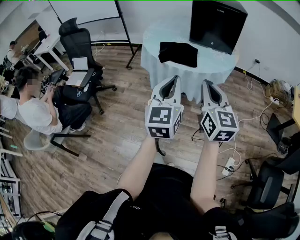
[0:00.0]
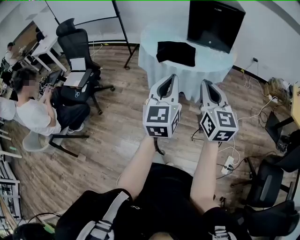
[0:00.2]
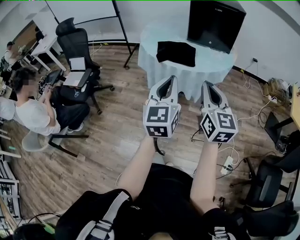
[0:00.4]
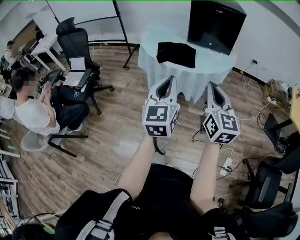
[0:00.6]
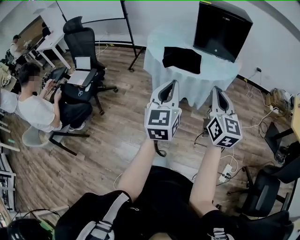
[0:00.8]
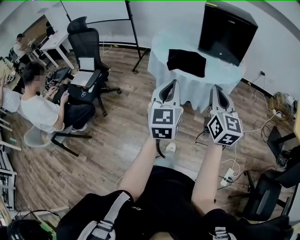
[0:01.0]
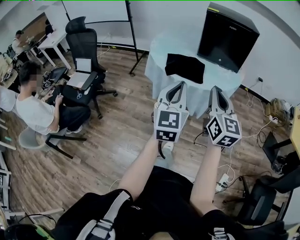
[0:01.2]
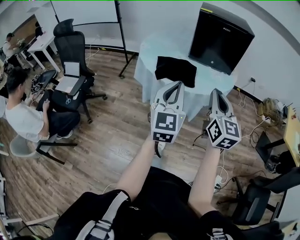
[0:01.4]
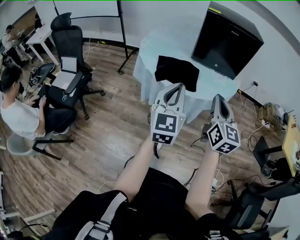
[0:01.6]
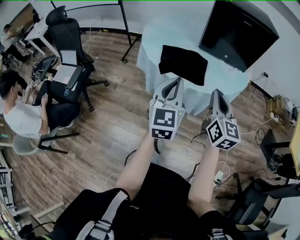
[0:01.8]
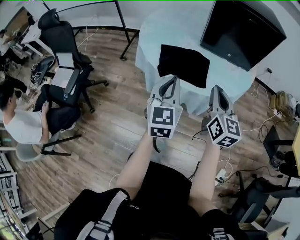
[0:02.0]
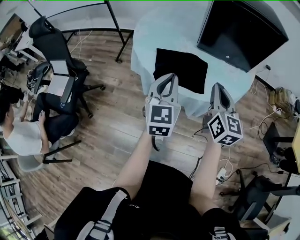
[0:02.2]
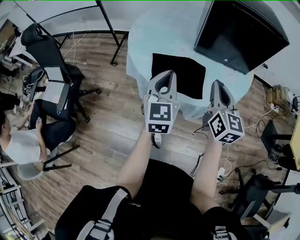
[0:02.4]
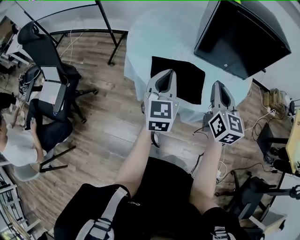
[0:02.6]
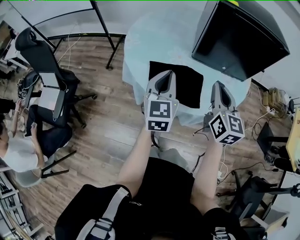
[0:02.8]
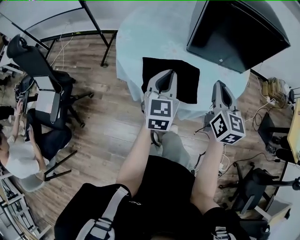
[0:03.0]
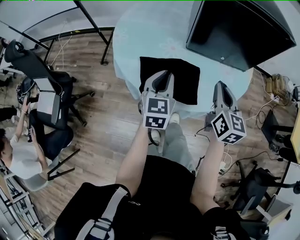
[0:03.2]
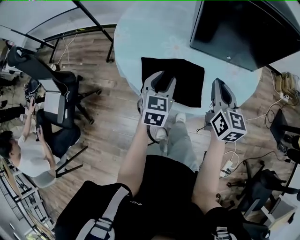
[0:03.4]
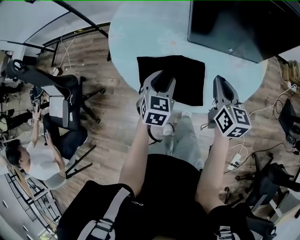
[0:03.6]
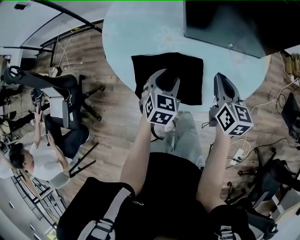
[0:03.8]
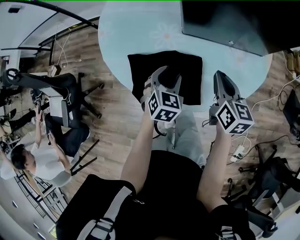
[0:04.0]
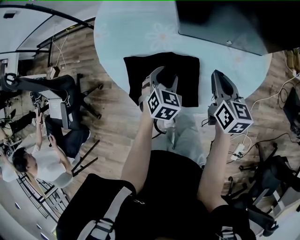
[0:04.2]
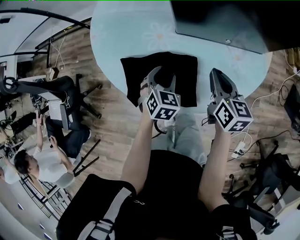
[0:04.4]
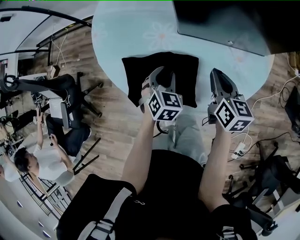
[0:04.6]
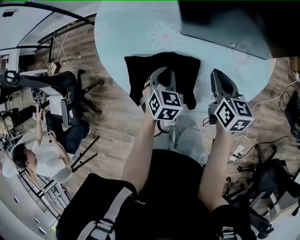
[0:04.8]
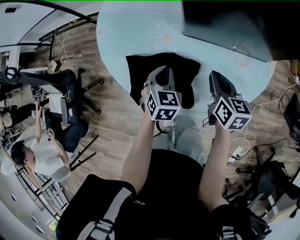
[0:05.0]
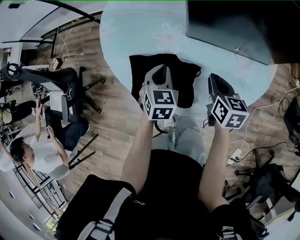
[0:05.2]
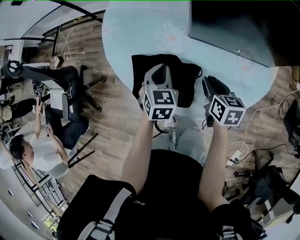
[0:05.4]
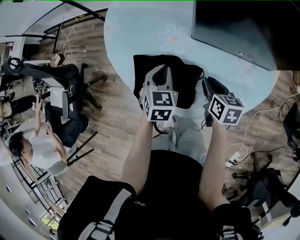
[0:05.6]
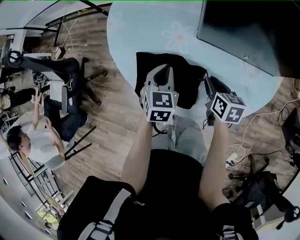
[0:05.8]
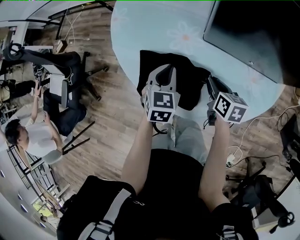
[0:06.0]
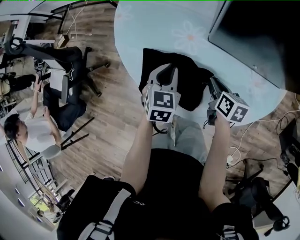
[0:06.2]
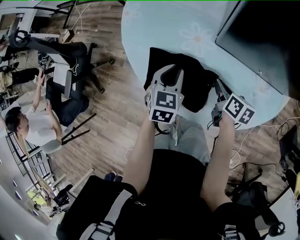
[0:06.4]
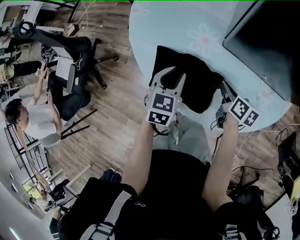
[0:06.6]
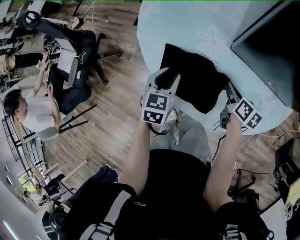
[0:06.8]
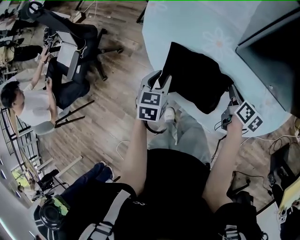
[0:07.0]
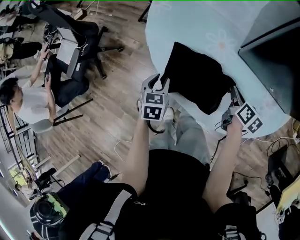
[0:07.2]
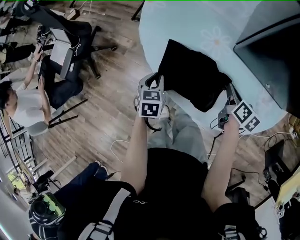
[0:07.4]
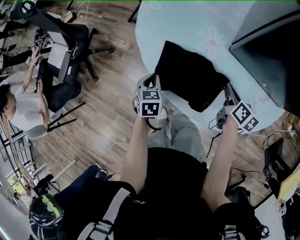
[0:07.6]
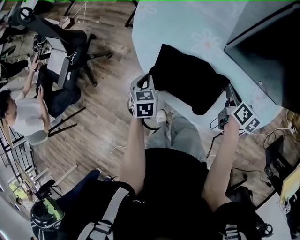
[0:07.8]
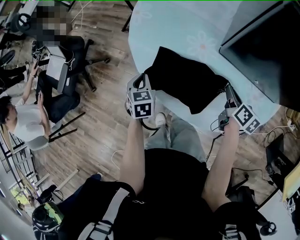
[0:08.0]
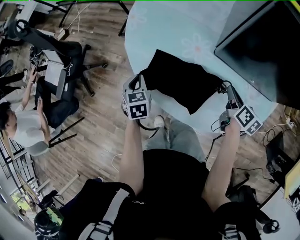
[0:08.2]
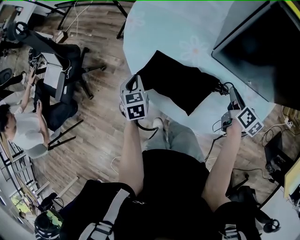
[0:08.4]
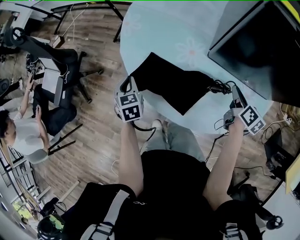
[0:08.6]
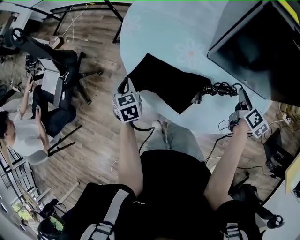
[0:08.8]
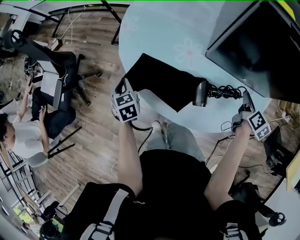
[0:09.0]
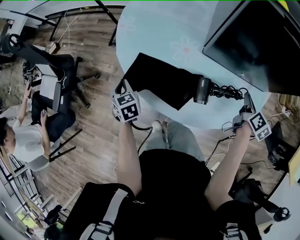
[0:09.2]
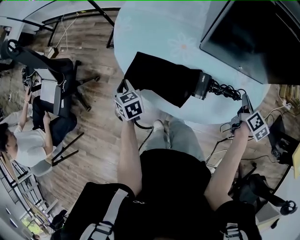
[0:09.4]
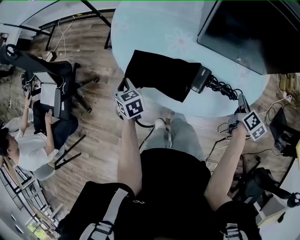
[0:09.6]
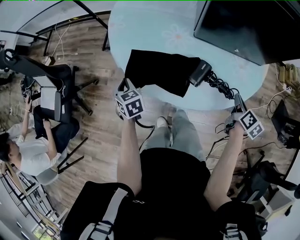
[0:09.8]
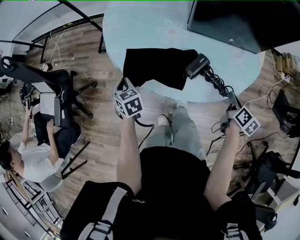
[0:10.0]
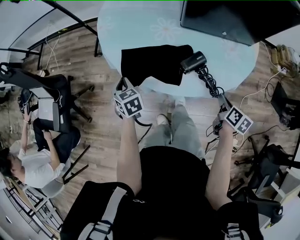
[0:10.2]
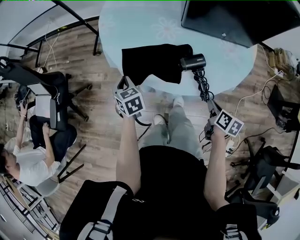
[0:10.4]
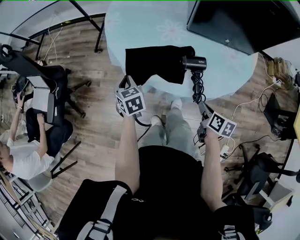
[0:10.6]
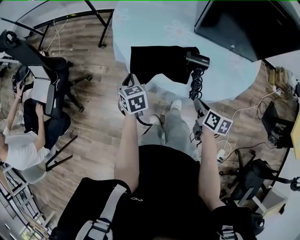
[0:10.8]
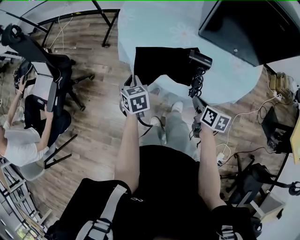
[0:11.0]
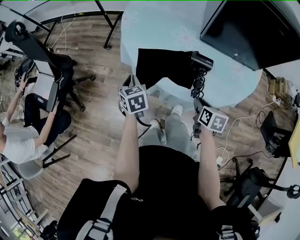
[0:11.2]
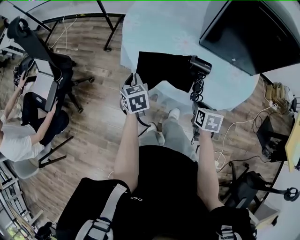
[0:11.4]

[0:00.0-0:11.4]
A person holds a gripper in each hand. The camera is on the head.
0:00.0 to 0:01.4: Both grippers move forward, some 10 cm.
0:01.4 to 0:02.8: Both grippers move forward, approximately 30 cm.
0:02.8 to 0:04.2: The right gripper goes roughly 20 cm downward, forward and to the right, and turns by roughly 20 degrees. Meanwhile the left gripper shifts some 25 cm downward and to the right, points its fingers roughly 40 degrees further downward, and opens.
0:04.2 to 0:05.6: The left gripper changes place by roughly 5 cm, changes its angle by roughly 20 degrees, and closes its fingers. The right gripper shifts some 10 cm downward.
0:05.6 to 0:07.2: The left gripper shifts some 20 cm to the left and downward, rotates approximately 30 degrees, and opens up.
0:07.2 to 0:08.6: The right gripper moves to the right and upward, roughly 10 cm; the left gripper goes roughly 5 cm forward, and closes.
0:08.6 to 0:10.0: The right gripper goes some 20 cm backward.
0:10.0 to 0:11.4: The right gripper heads to the left, covering about 15 cm, and rotates roughly 40 degrees.

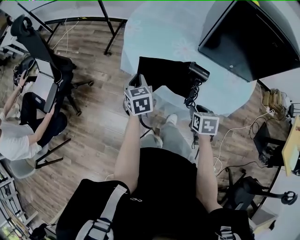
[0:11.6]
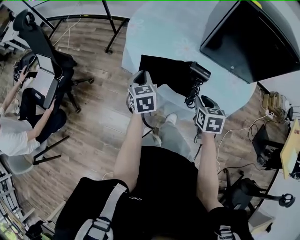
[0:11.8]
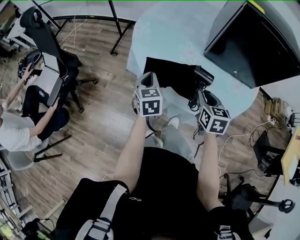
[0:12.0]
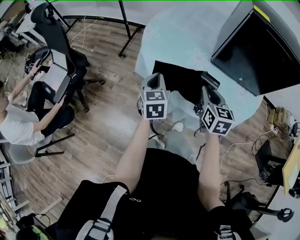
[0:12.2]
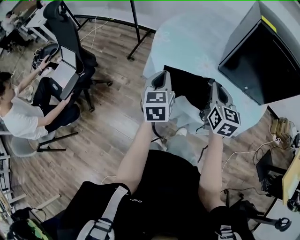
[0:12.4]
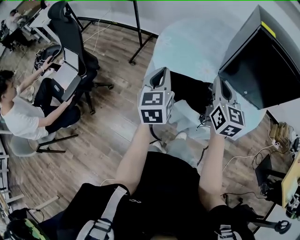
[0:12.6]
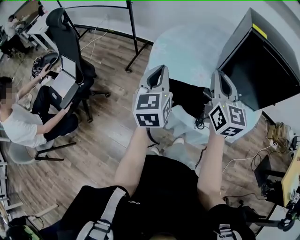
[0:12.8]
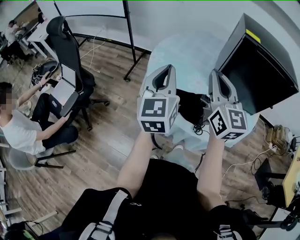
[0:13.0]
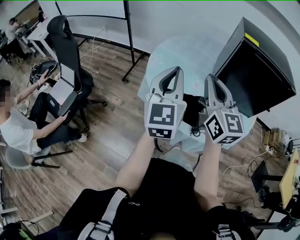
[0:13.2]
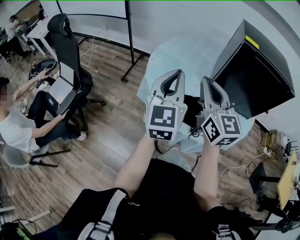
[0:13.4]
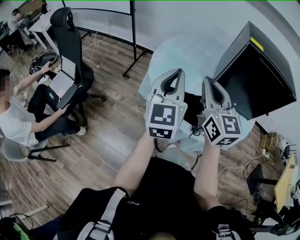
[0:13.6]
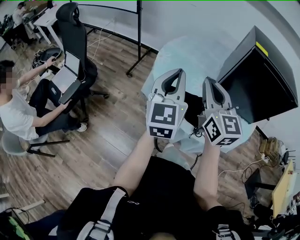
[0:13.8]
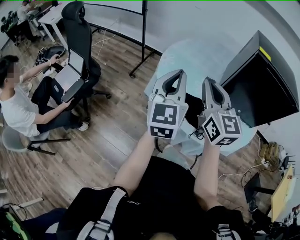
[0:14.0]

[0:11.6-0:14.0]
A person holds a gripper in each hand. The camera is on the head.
0:11.6 to 0:12.8: The right gripper goes roughly 35 cm upward and forward, tilts its fingers about 60 degrees upward, and closes up; the left gripper goes about 25 cm upward, and points its fingers about 30 degrees further upward.
0:12.8 to 0:14.0: The right gripper moves to the left, approximately 10 cm. The left gripper heads upward, covering roughly 5 cm.

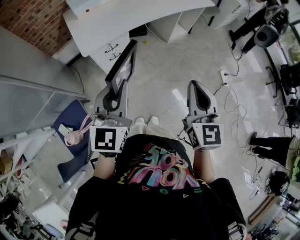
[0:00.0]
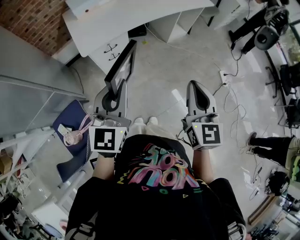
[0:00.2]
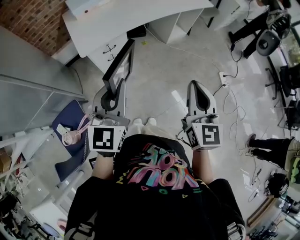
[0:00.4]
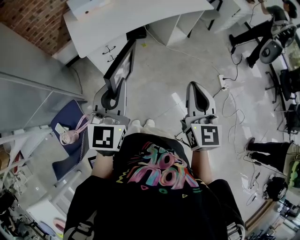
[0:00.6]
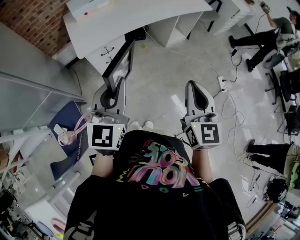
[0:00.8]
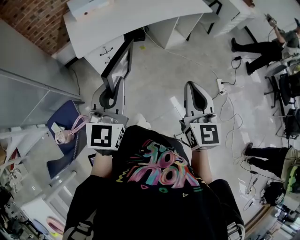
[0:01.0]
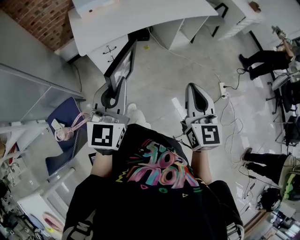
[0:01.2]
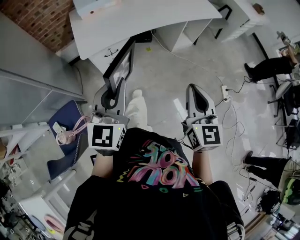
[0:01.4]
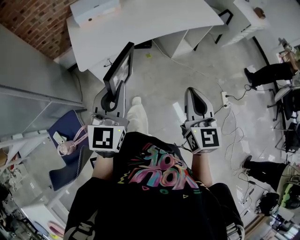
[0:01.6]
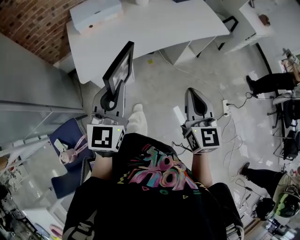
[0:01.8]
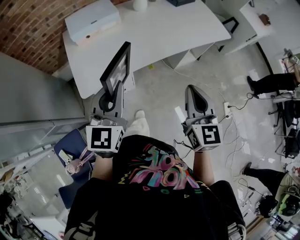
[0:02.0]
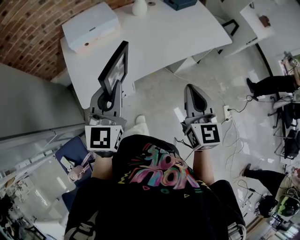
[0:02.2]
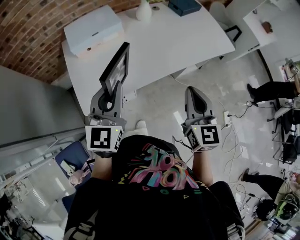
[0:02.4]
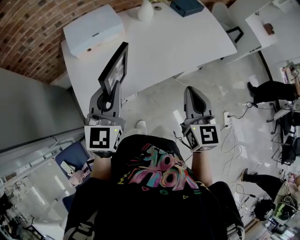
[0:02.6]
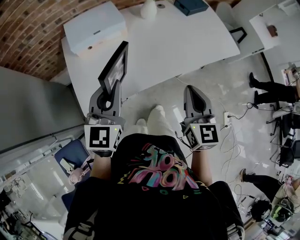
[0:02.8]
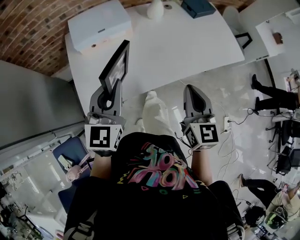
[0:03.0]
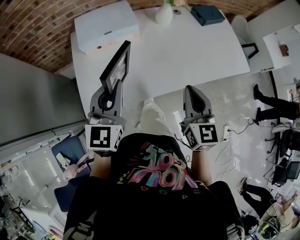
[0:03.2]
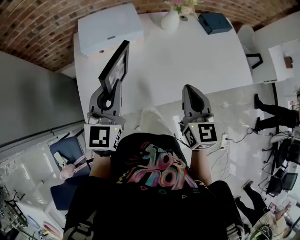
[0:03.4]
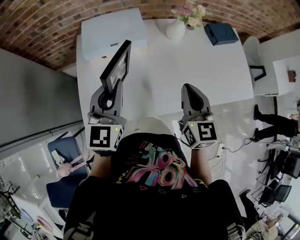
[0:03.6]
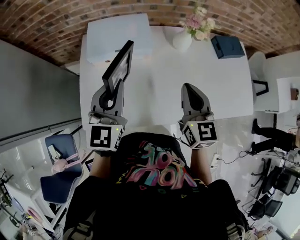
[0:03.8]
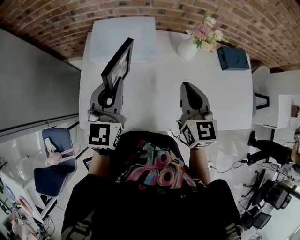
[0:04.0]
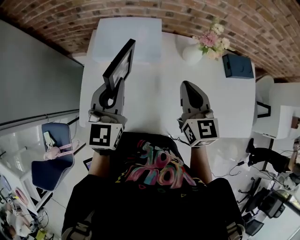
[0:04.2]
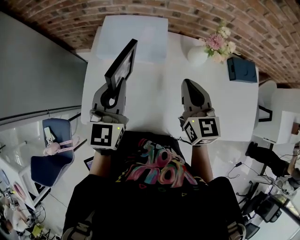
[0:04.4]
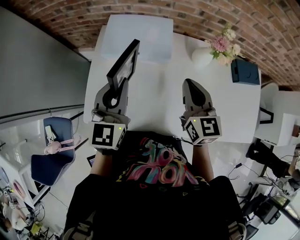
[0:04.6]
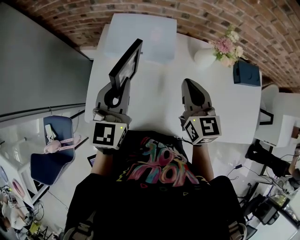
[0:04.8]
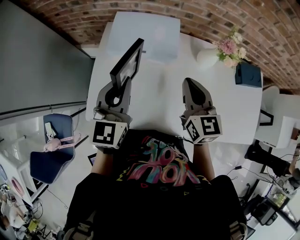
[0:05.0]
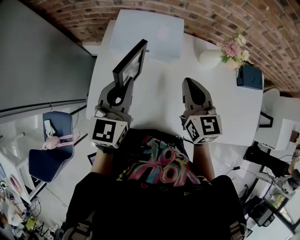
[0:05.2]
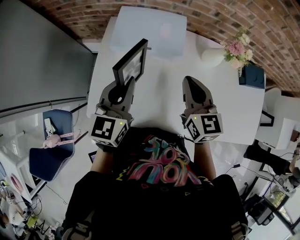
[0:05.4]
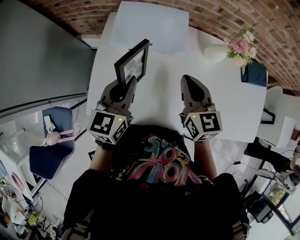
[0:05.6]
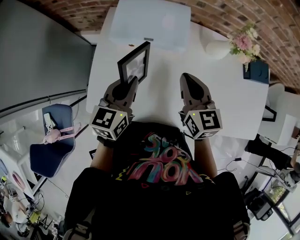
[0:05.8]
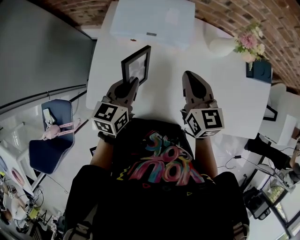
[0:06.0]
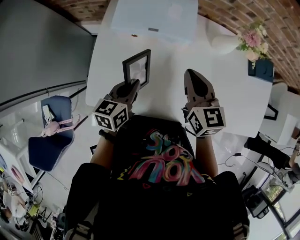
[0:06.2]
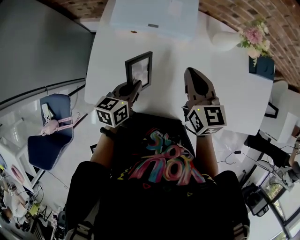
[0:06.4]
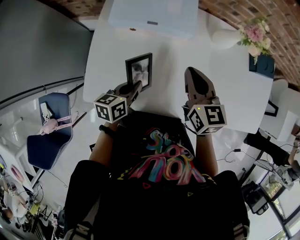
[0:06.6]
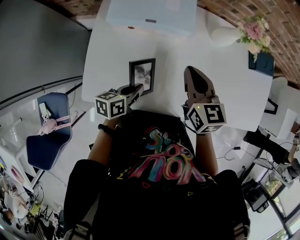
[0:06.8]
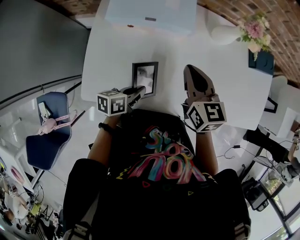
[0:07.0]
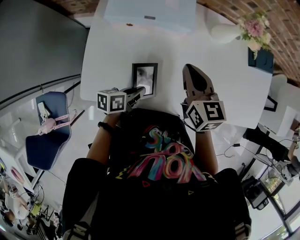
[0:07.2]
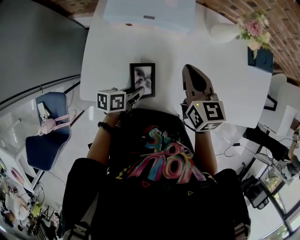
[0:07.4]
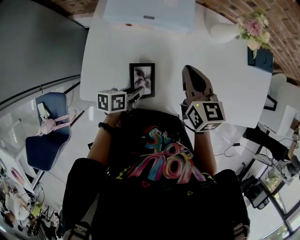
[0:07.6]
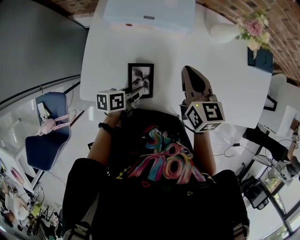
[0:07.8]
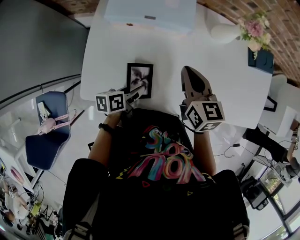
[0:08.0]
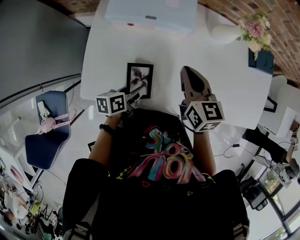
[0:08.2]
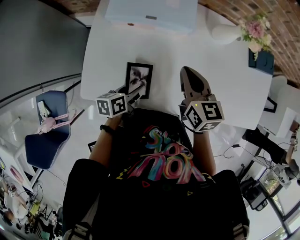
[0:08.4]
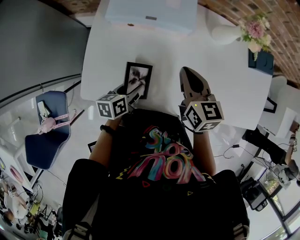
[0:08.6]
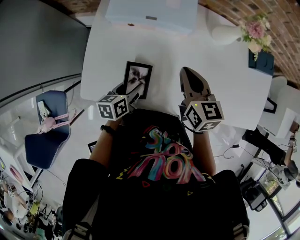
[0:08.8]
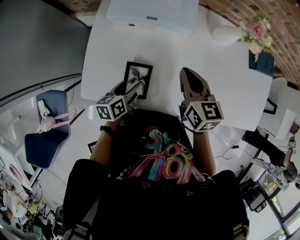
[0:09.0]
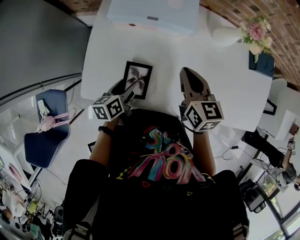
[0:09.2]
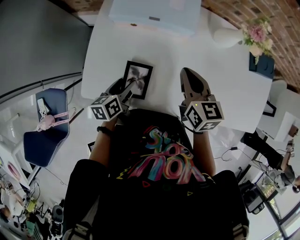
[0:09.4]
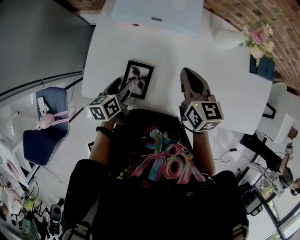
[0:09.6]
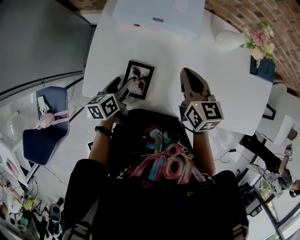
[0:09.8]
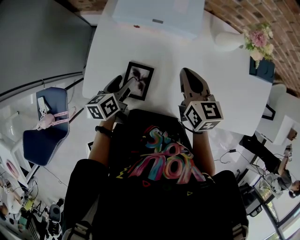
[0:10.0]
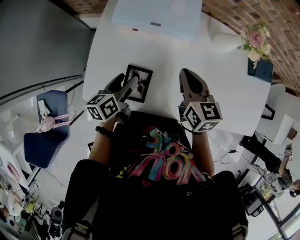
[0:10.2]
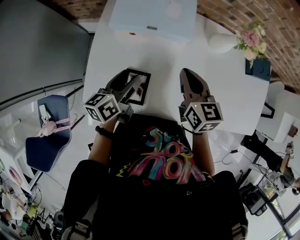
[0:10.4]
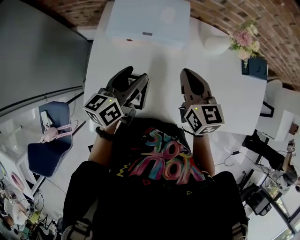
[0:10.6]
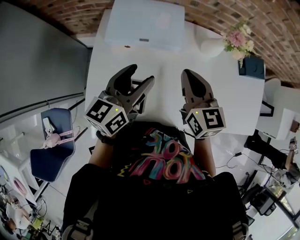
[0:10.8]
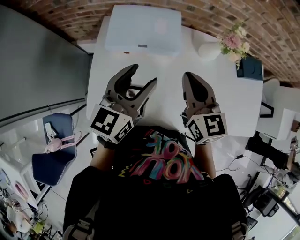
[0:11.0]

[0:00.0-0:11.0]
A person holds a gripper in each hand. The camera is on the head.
0:00.0 to 0:01.6: Both grippers move forward, about 15 cm.
0:01.6 to 0:03.2: The two grippers go about 40 cm forward.
0:03.2 to 0:04.8: The left gripper moves some 20 cm, and turns by roughly 20 degrees. The right gripper moves roughly 30 cm, and rotates about 30 degrees.
0:04.8 to 0:06.2: The right gripper travels downward by roughly 5 cm. Meanwhile the left gripper goes roughly 20 cm downward, and swivels some 40 degrees.
0:06.2 to 0:07.8: The left gripper heads downward, backward and to the right, covering about 15 cm, rotates approximately 40 degrees, and opens up.
0:07.8 to 0:09.4: The left gripper is displaced to the left by about 5 cm, swivels about 20 degrees, and opens up.
0:09.4 to 0:11.0: The right gripper shifts some 15 cm upward; the left gripper travels upward by roughly 30 cm, and turns by approximately 50 degrees.
